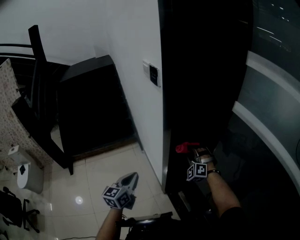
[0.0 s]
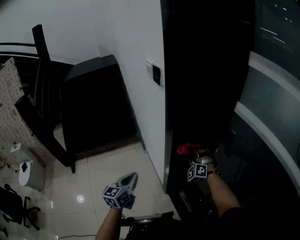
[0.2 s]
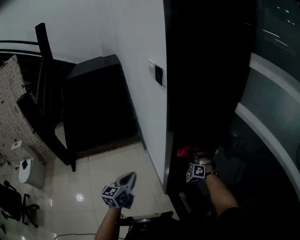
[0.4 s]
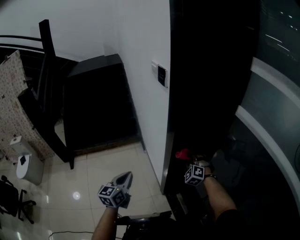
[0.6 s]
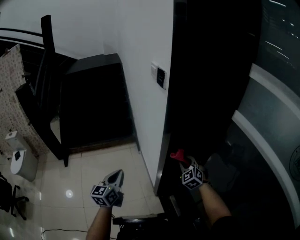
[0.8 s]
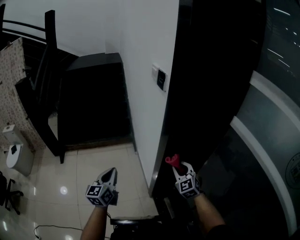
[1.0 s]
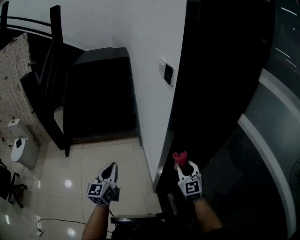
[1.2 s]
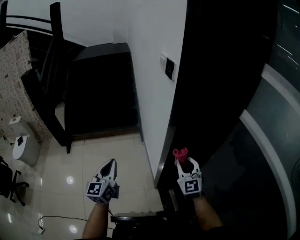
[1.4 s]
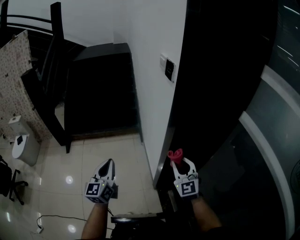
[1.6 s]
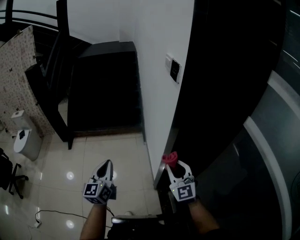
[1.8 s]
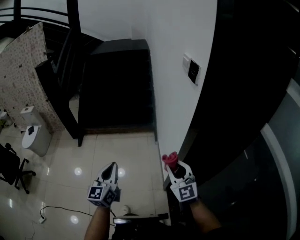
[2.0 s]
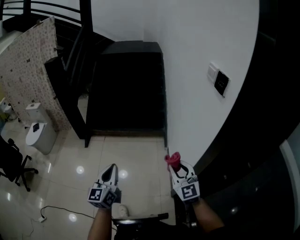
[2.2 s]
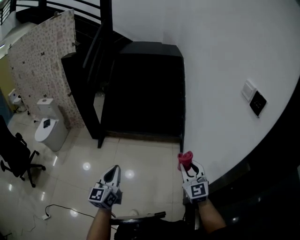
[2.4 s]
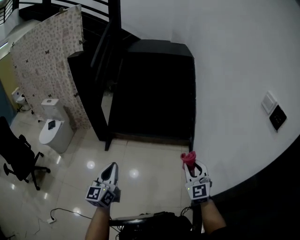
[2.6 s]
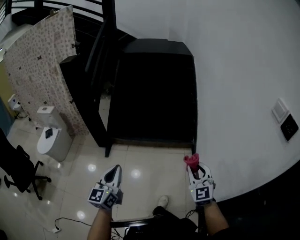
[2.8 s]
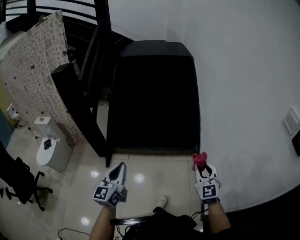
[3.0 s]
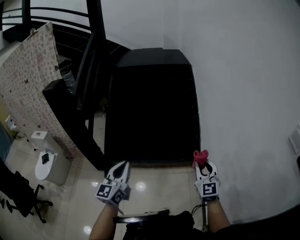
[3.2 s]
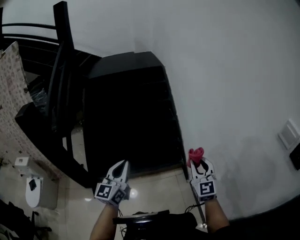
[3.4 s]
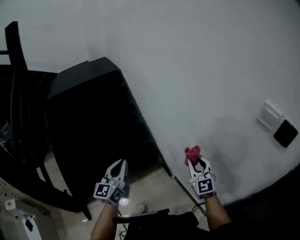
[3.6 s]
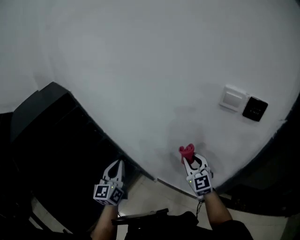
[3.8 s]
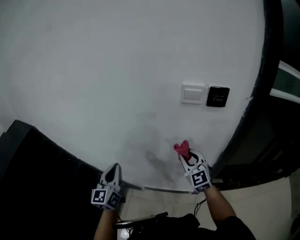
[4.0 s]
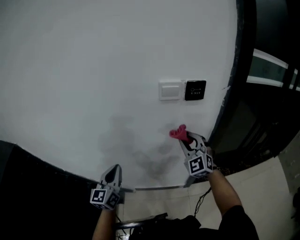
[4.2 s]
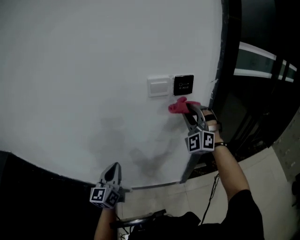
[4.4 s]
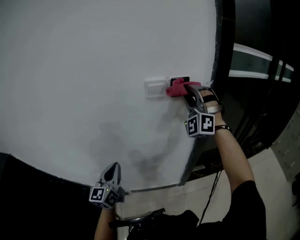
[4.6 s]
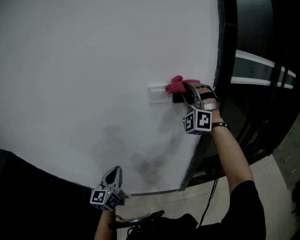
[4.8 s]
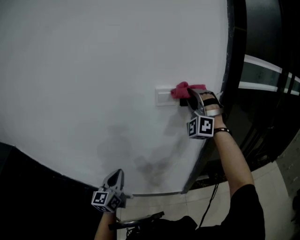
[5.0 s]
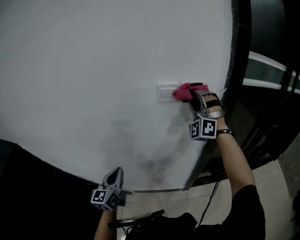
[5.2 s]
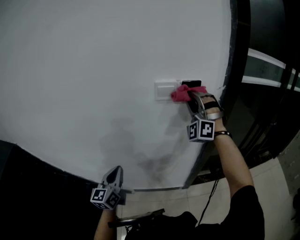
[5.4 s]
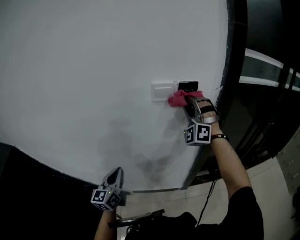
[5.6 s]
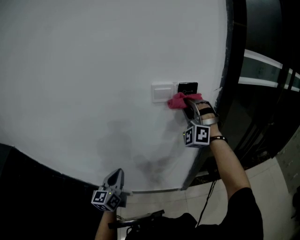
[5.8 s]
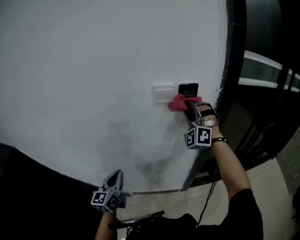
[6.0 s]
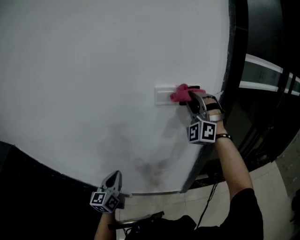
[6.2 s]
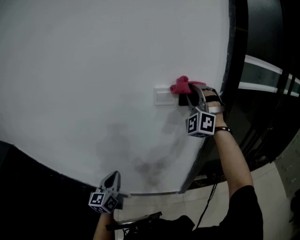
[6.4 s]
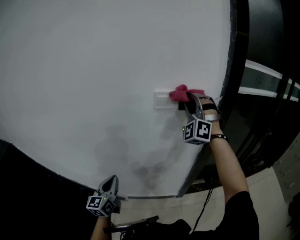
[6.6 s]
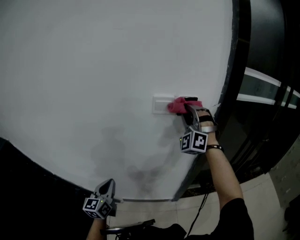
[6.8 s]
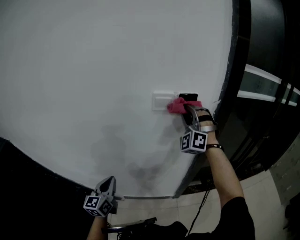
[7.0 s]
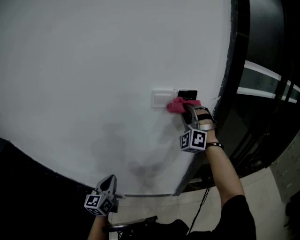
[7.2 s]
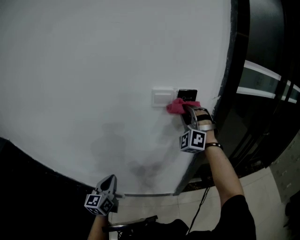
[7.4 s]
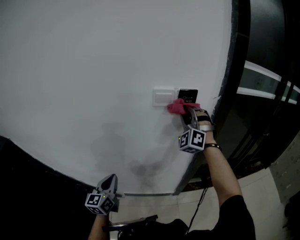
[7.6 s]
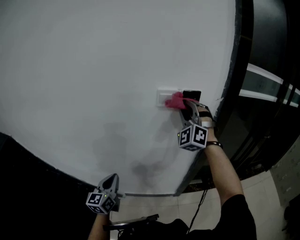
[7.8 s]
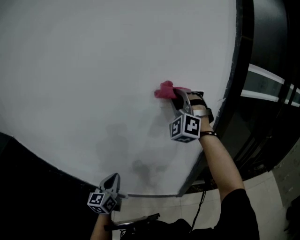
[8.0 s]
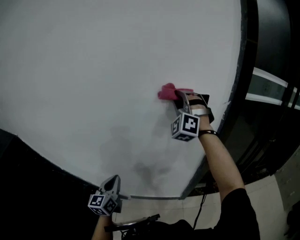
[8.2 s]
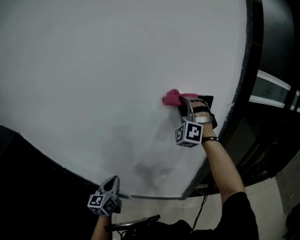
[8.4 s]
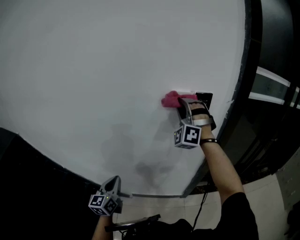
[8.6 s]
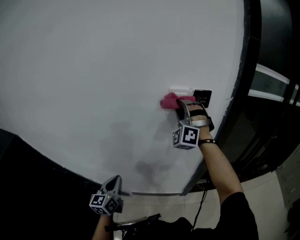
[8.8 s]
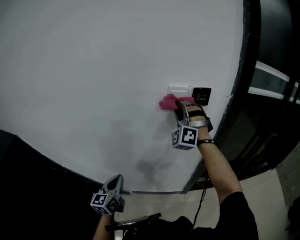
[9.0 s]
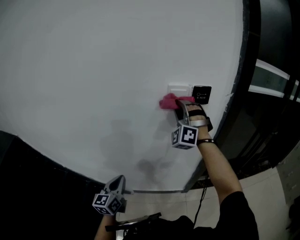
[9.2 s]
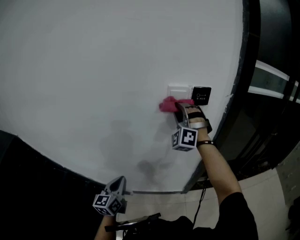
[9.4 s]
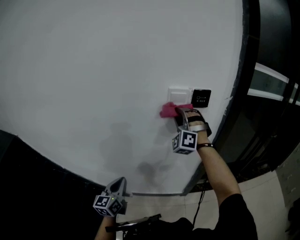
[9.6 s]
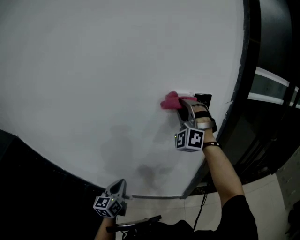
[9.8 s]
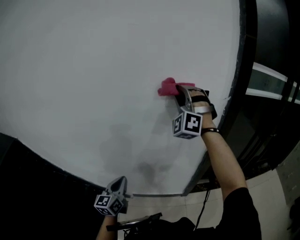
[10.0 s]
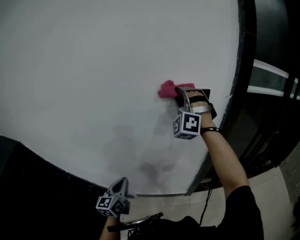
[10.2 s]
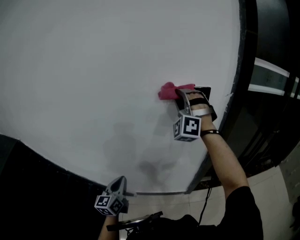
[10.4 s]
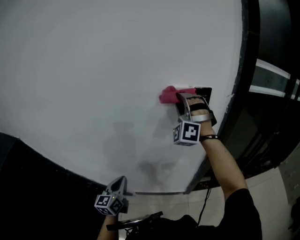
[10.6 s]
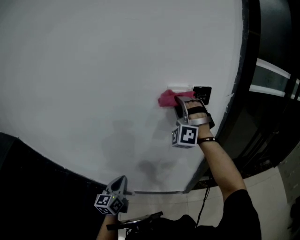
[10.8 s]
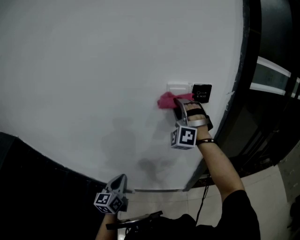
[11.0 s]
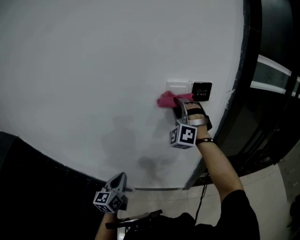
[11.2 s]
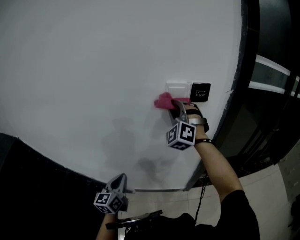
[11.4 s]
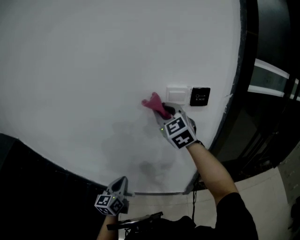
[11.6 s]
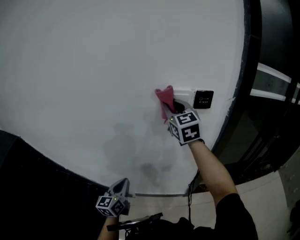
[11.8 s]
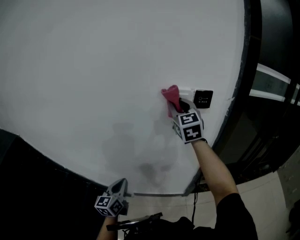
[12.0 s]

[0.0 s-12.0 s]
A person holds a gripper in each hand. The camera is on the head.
0.0 to 1.6 s: The left gripper shifts some 10 cm to the left and upward, and rotates about 30 degrees. The right gripper heads backward, to the left and upward, covering about 15 cm, and rolls clockwise, seen from behind, by approximately 40 degrees.
1.6 to 3.0 s: The two grippers travel together, forward and to the left, approximately 50 cm.
3.0 to 4.4 s: The left gripper shifts by about 60 cm, and swivels approximately 90 degrees. The right gripper ends up roughly 40 cm from where it was, and swivels roughly 100 degrees.
4.4 to 6.0 s: The right gripper goes upward and returns, approximately 10 cm each way.
6.0 to 7.6 s: The right gripper goes upward and returns, approximately 10 cm each way.
7.6 to 9.0 s: The right gripper heads to the left, covering approximately 10 cm.
9.0 to 10.4 s: The right gripper goes approximately 5 cm upward.
10.4 to 12.0 s: The right gripper twists approximately 70 degrees clockwise, seen from behind.

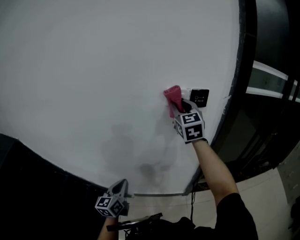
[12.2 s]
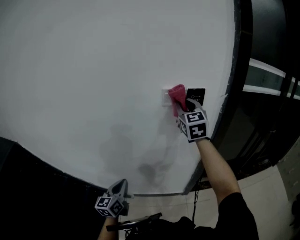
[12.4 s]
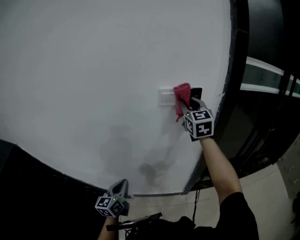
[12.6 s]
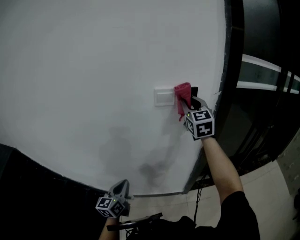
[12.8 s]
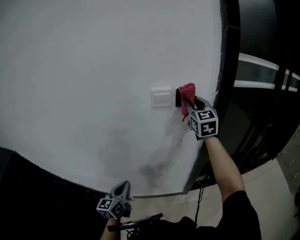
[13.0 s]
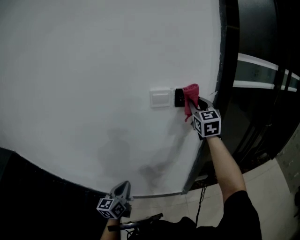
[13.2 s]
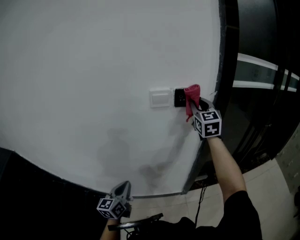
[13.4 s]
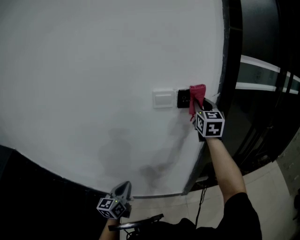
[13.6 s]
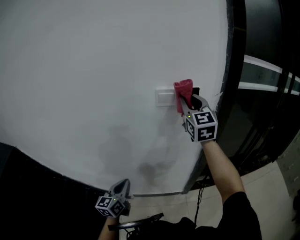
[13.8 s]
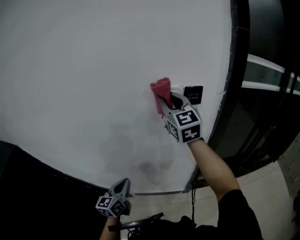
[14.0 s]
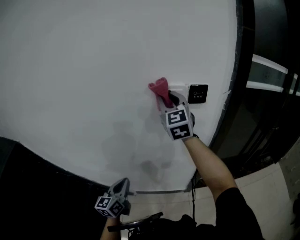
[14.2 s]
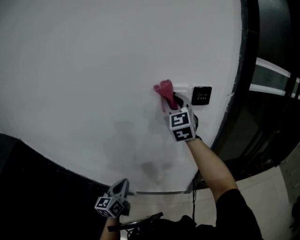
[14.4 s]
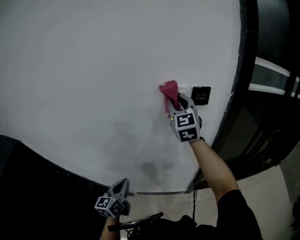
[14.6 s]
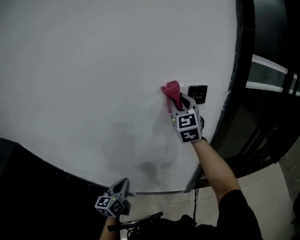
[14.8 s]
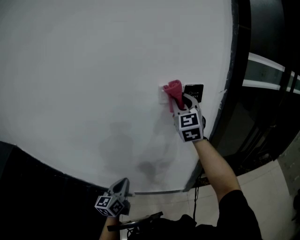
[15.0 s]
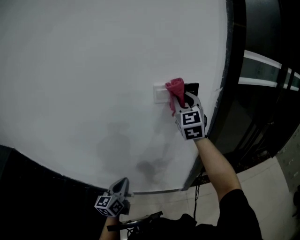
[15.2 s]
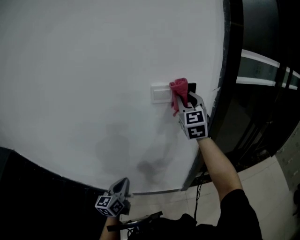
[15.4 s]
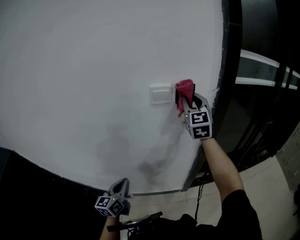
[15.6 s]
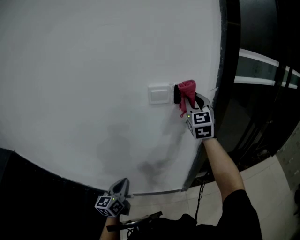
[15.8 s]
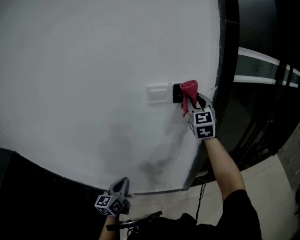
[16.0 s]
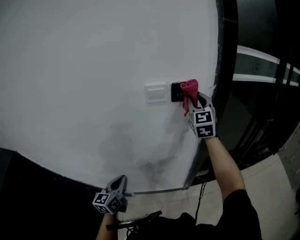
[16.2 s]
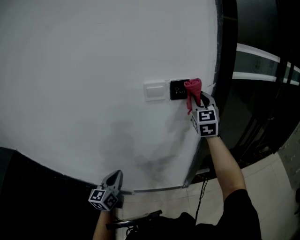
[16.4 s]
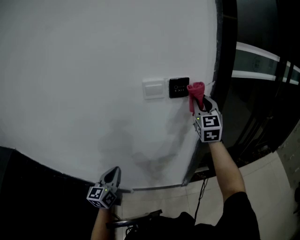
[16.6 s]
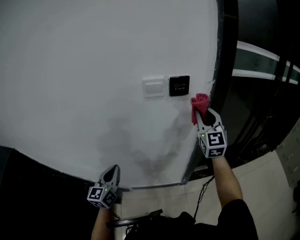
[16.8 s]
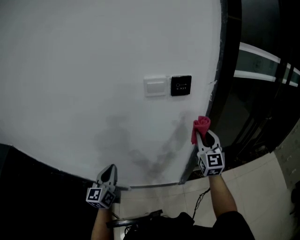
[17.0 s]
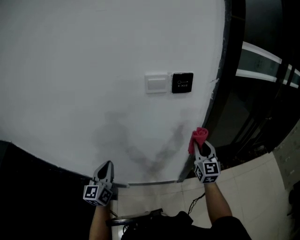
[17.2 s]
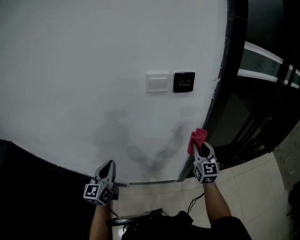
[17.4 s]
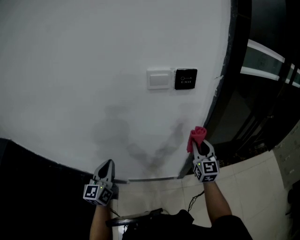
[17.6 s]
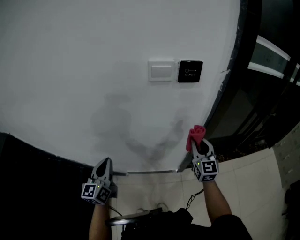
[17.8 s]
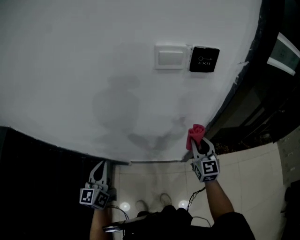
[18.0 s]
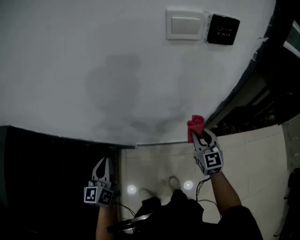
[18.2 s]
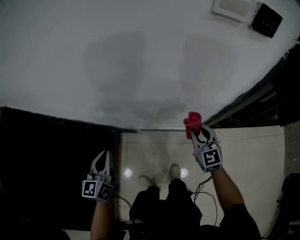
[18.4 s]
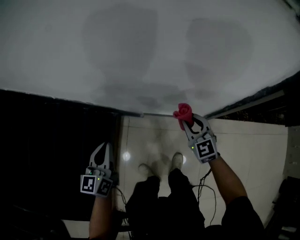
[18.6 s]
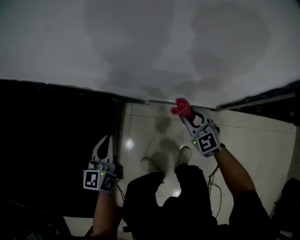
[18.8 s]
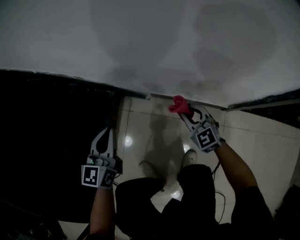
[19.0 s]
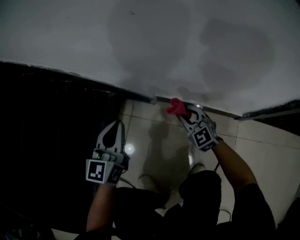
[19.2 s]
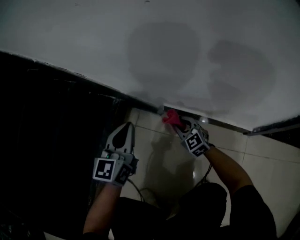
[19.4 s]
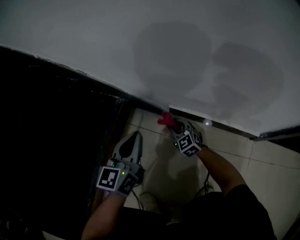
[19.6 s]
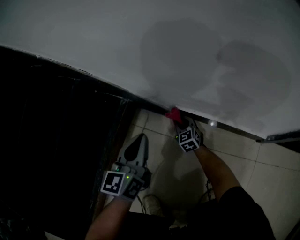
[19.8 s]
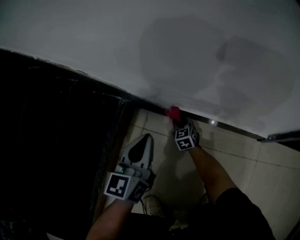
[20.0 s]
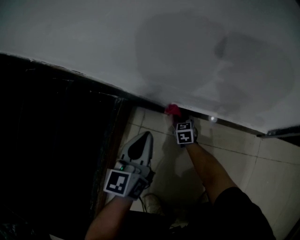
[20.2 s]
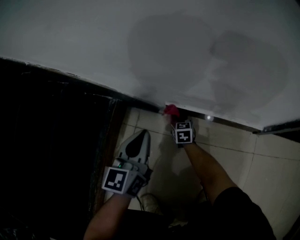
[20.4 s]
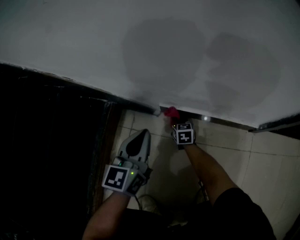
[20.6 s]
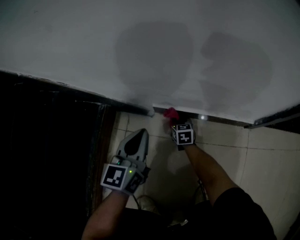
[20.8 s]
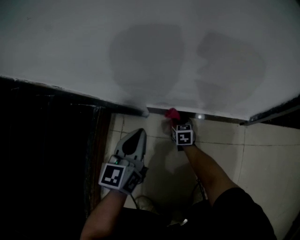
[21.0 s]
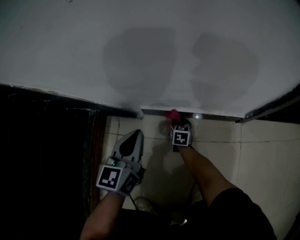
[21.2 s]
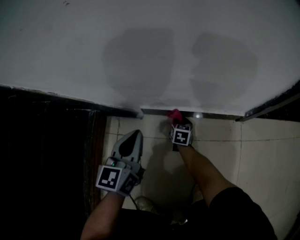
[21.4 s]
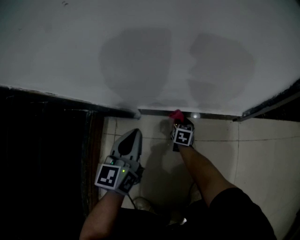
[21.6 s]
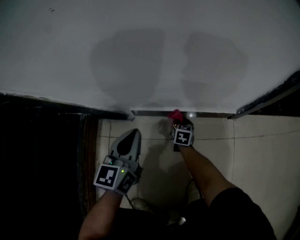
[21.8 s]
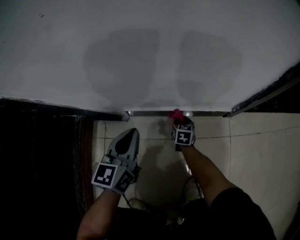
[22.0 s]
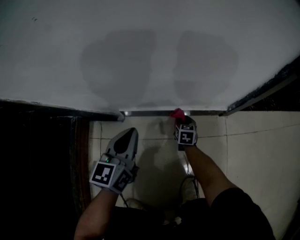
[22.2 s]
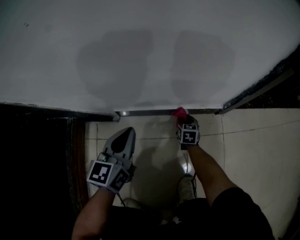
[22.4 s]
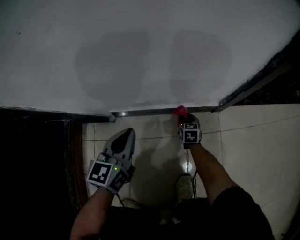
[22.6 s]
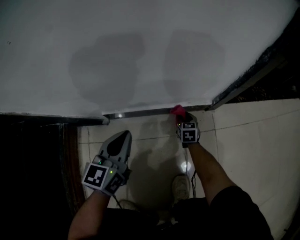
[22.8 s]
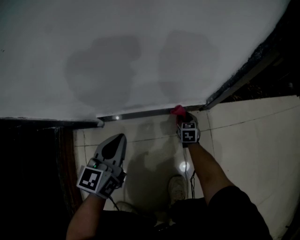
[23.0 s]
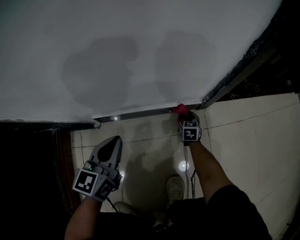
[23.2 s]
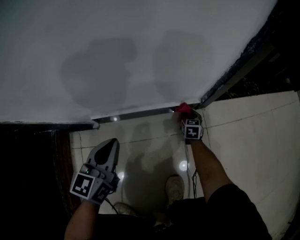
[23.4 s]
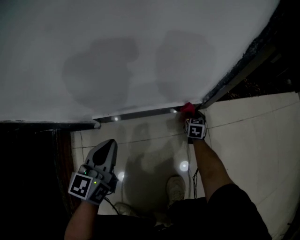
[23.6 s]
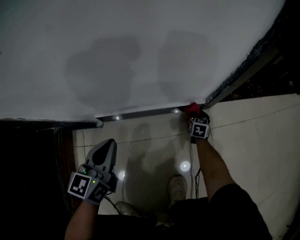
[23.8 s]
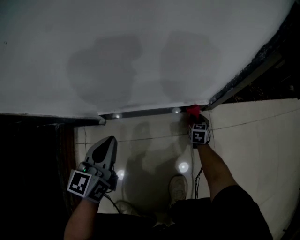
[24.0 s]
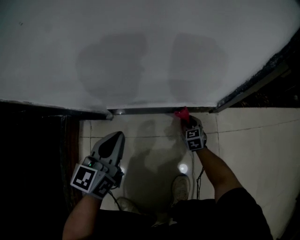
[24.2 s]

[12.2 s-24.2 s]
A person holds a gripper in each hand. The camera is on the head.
12.2 to 13.8 s: The right gripper heads to the right, covering roughly 5 cm.
13.8 to 15.2 s: The right gripper moves about 10 cm to the left and comes back.
15.2 to 16.6 s: The right gripper shifts roughly 15 cm to the right. Meanwhile the left gripper shifts by roughly 5 cm.
16.6 to 18.2 s: The left gripper goes approximately 15 cm downward and to the left. Meanwhile the right gripper shifts about 35 cm downward, and changes its angle by roughly 30 degrees.
18.2 to 19.8 s: Both grippers travel together downward, about 70 cm. The right gripper swivels approximately 40 degrees.
19.8 to 21.2 s: Both grippers move to the right, approximately 15 cm. The right gripper rotates around the line of its fingers by about 40 degrees, clockwise from behind.
21.2 to 22.6 s: The left gripper is displaced to the right by some 10 cm; the right gripper heads to the right, covering some 20 cm.
22.6 to 24.2 s: The right gripper goes to the right and returns, about 15 cm each way.
